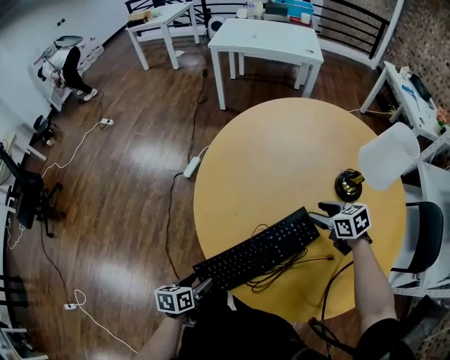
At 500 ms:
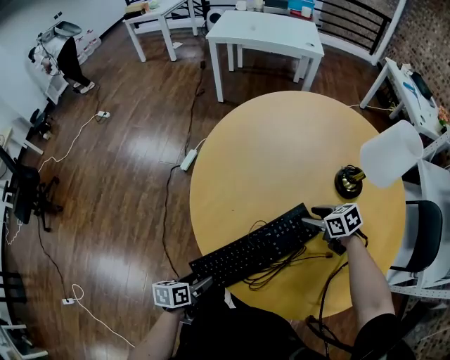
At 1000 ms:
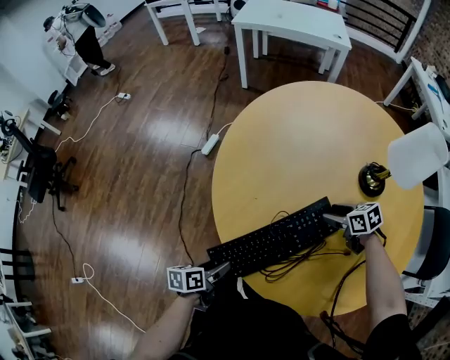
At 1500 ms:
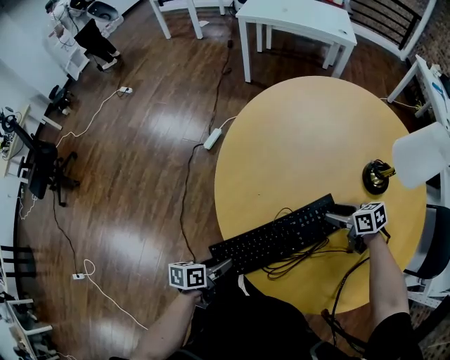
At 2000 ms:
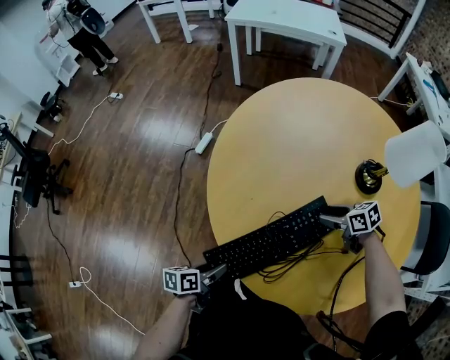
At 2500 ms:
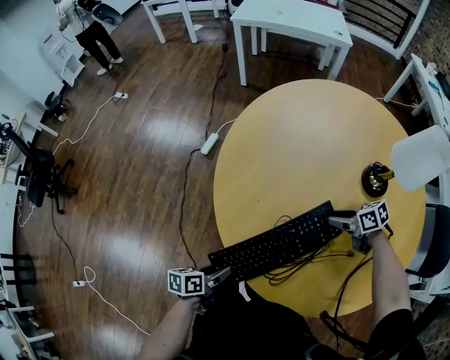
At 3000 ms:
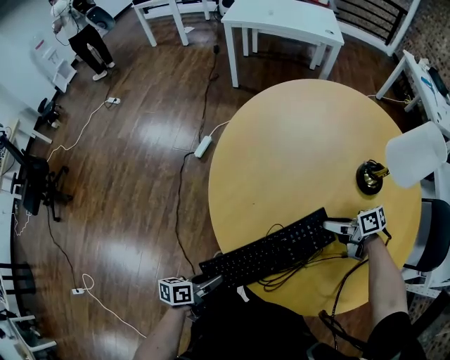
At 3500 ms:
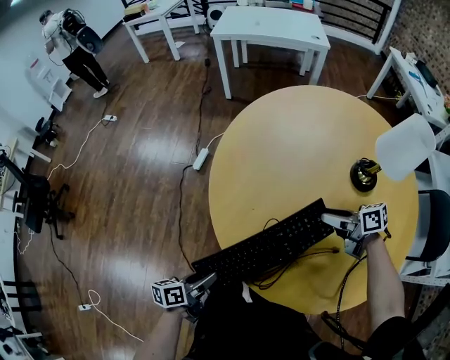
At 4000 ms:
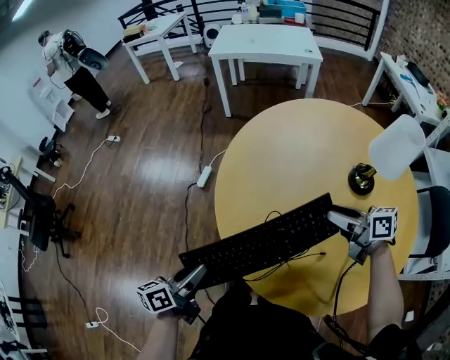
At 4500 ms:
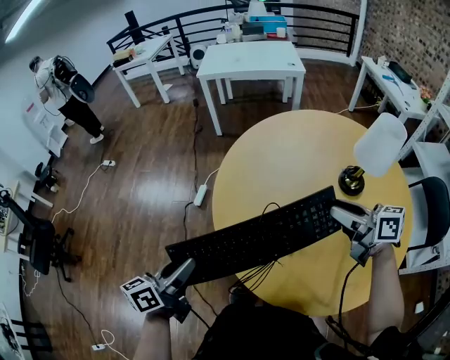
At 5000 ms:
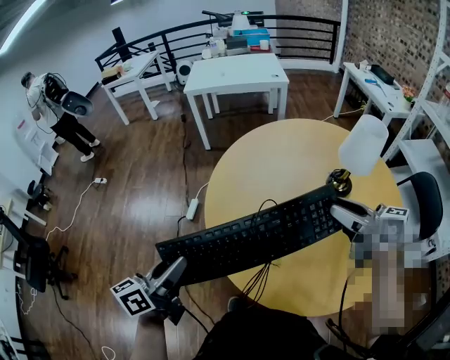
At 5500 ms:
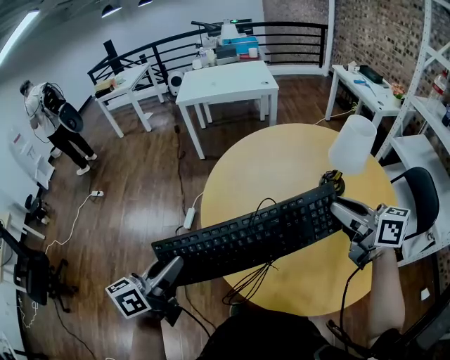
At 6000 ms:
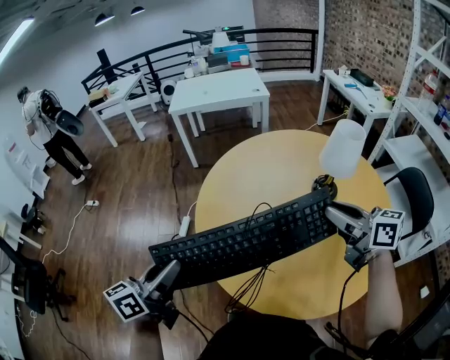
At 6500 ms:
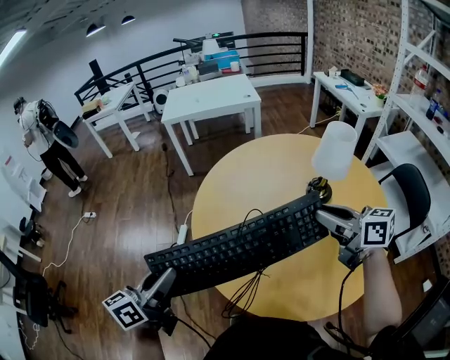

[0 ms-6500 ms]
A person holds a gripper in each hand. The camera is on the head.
0 ms to 2000 ms: The right gripper moves downward, about 5 cm.
2000 ms to 4500 ms: The two grippers go approximately 30 cm upward. The right gripper tilts its fingers roughly 30 degrees upward; the left gripper changes its angle by roughly 30 degrees.
4500 ms to 6500 ms: The left gripper shifts roughly 10 cm upward. Meanwhile the right gripper moves upward and backward, about 10 cm.

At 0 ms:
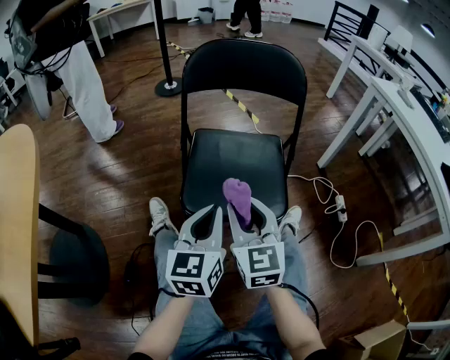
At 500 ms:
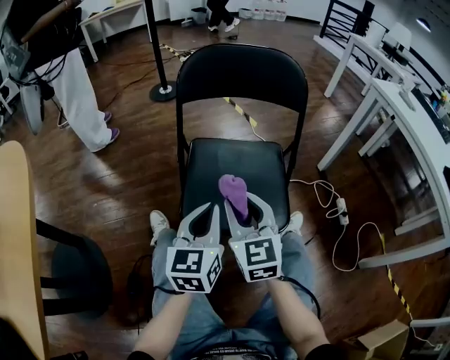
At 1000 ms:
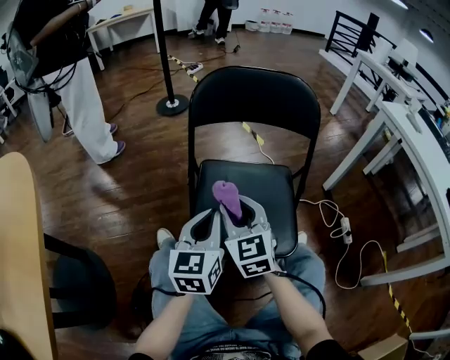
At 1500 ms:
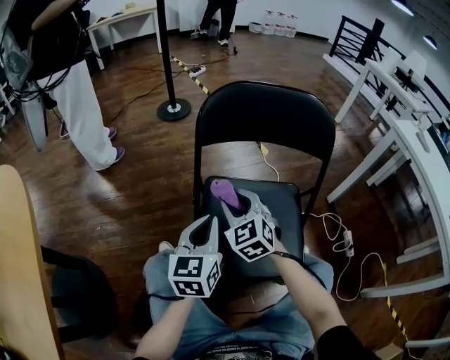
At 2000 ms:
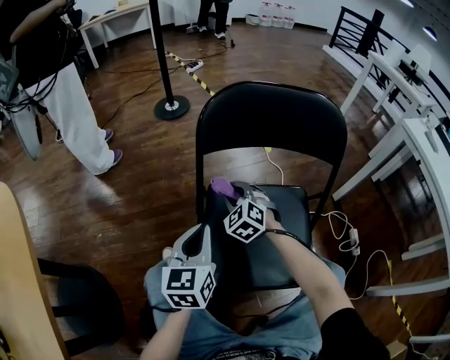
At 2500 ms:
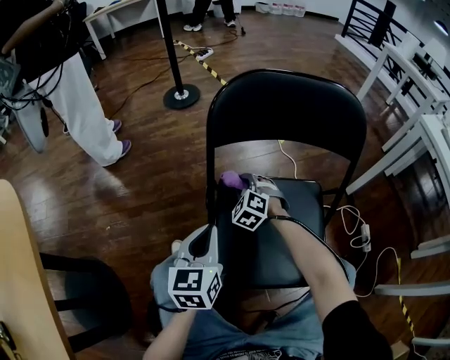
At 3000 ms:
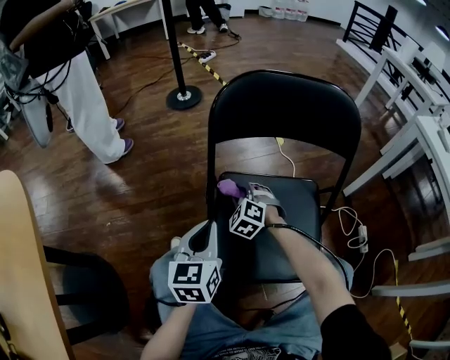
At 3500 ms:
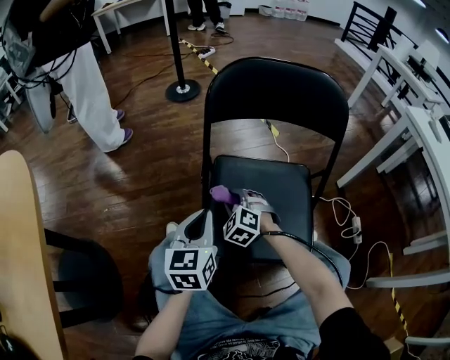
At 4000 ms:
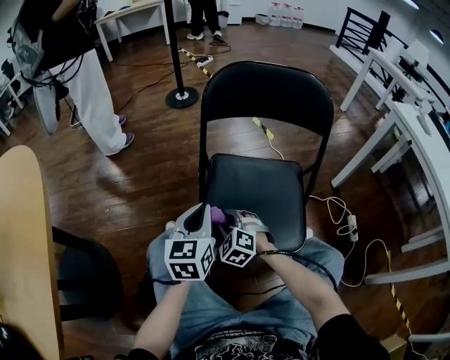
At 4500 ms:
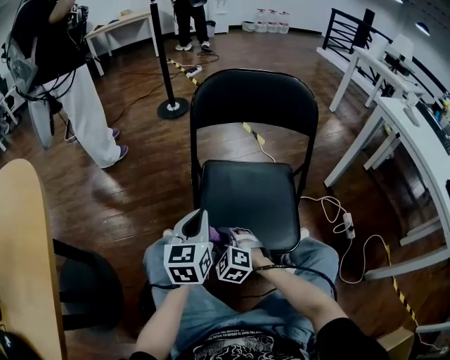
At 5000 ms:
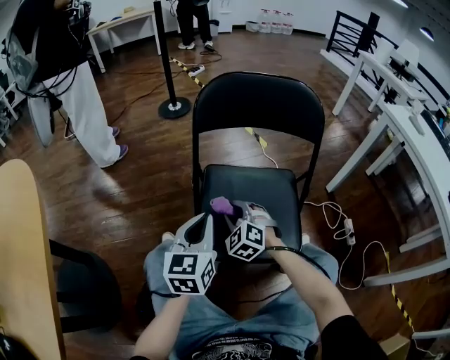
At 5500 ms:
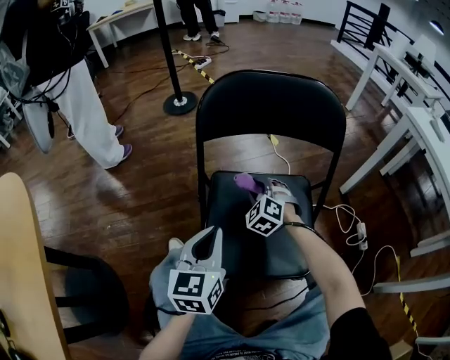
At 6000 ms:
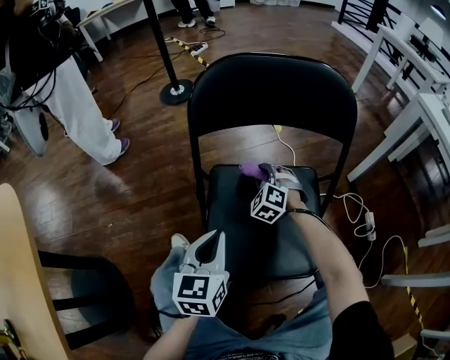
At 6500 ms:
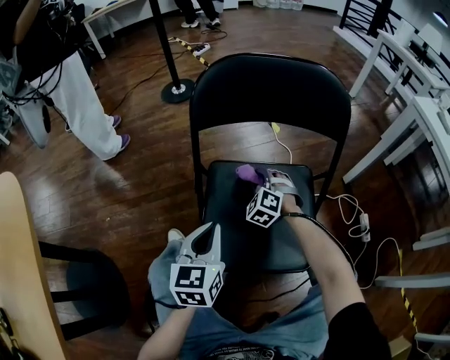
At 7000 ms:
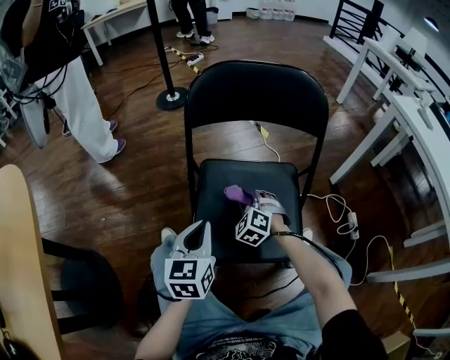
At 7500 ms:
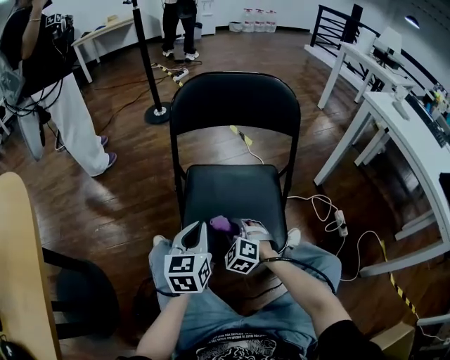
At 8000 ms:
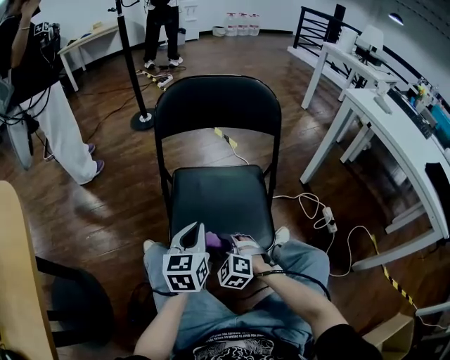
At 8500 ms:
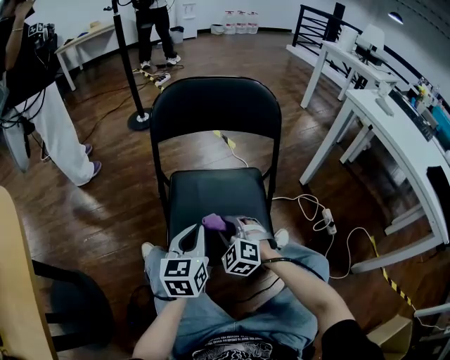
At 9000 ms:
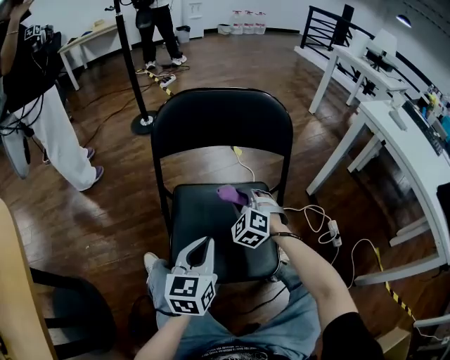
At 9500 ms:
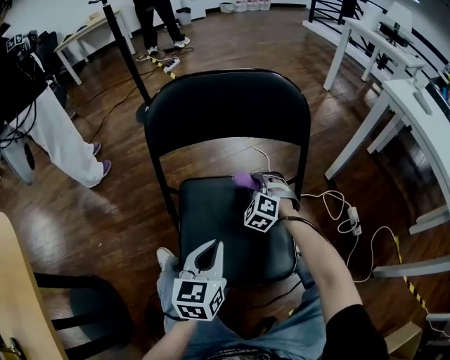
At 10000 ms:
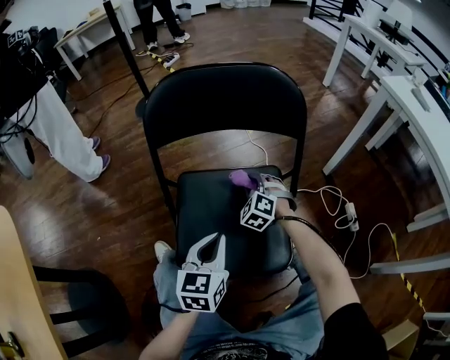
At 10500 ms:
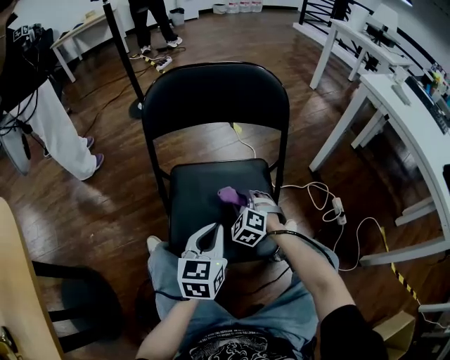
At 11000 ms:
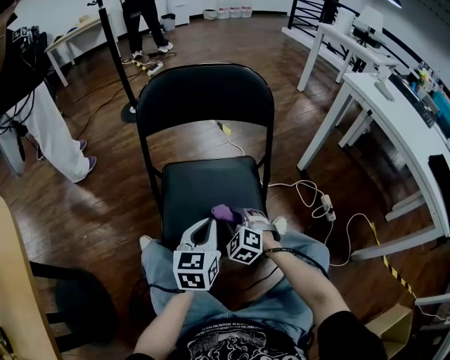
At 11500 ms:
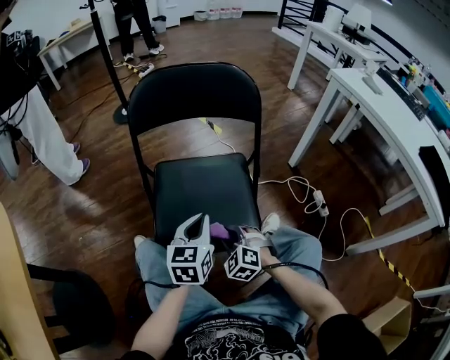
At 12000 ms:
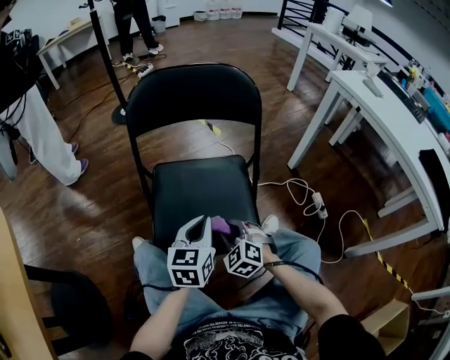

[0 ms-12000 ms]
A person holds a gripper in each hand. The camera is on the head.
0 ms to 2000 ms: The left gripper shifts roughly 25 cm forward and to the left. The right gripper heads forward, covering some 35 cm, and changes its angle by about 50 degrees.
2000 ms to 4000 ms: The left gripper is displaced backward by about 10 cm. The right gripper shifts approximately 20 cm backward.
4000 ms to 6000 ms: The right gripper goes approximately 25 cm forward and to the right; the left gripper moves roughly 5 cm.
6000 ms to 8000 ms: The right gripper moves backward, roughly 30 cm. Meanwhile the left gripper moves backward and to the right, about 10 cm.
8000 ms to 10000 ms: The left gripper travels forward by roughly 5 cm; the right gripper heads forward, covering about 25 cm.
10000 ms to 12000 ms: The left gripper shifts by roughly 5 cm. Meanwhile the right gripper travels backward by about 25 cm.

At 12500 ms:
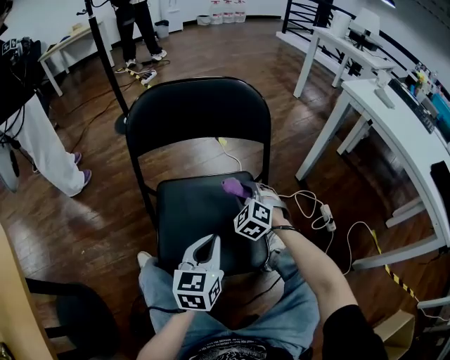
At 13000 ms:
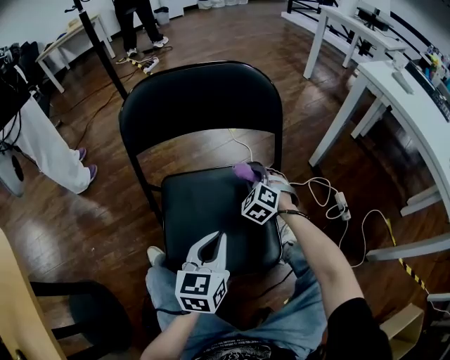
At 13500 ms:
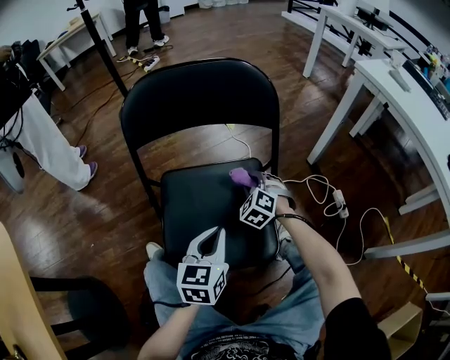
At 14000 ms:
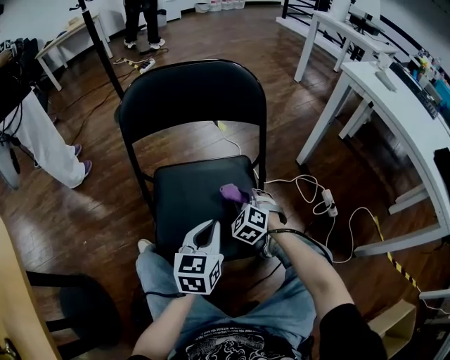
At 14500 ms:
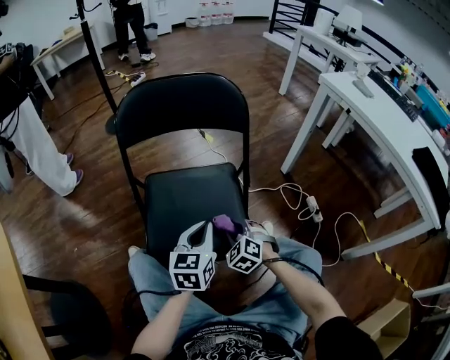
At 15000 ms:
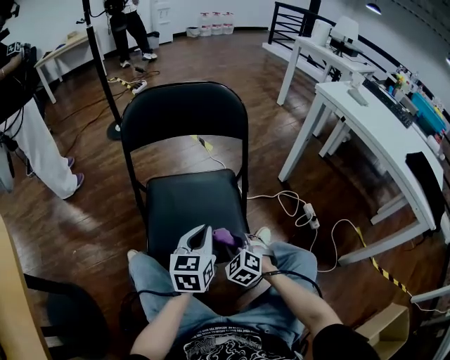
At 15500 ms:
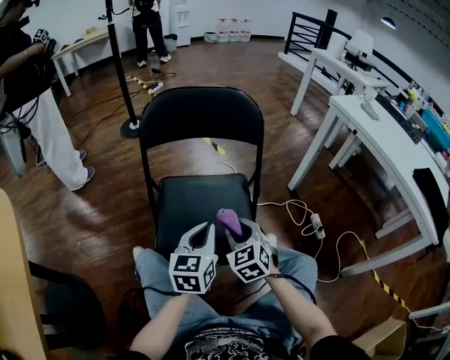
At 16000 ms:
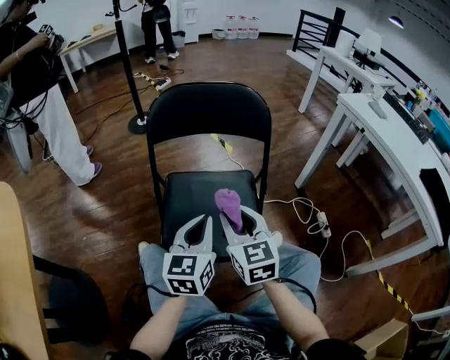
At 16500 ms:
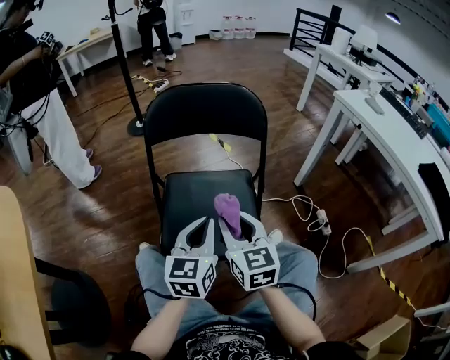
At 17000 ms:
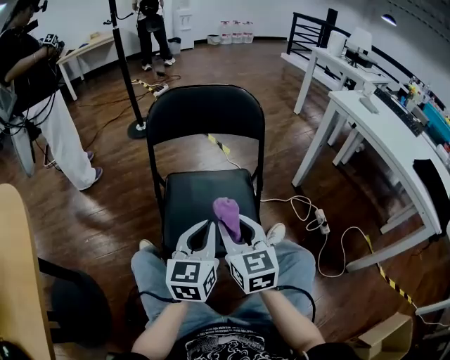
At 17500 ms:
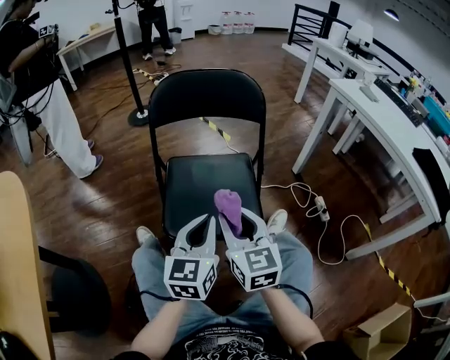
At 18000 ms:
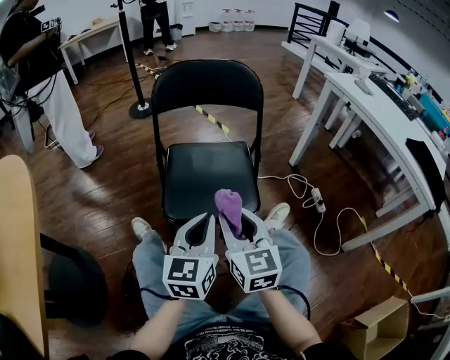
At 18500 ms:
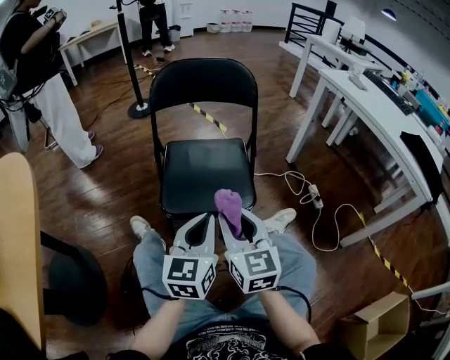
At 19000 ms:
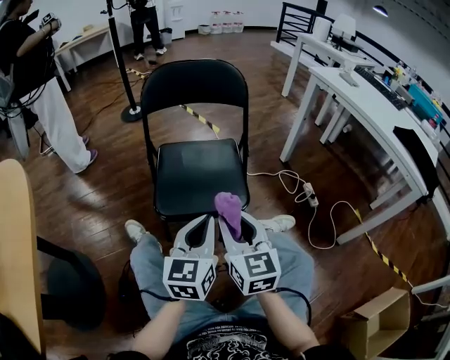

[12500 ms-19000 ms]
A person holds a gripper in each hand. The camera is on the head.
12500 ms to 14500 ms: The right gripper shifts some 15 cm backward.
14500 ms to 17000 ms: The right gripper moves upward, some 25 cm, and points its fingers some 30 degrees further upward. The left gripper moves upward and backward, roughly 10 cm.
17000 ms to 19000 ms: The two grippers go roughly 15 cm backward.

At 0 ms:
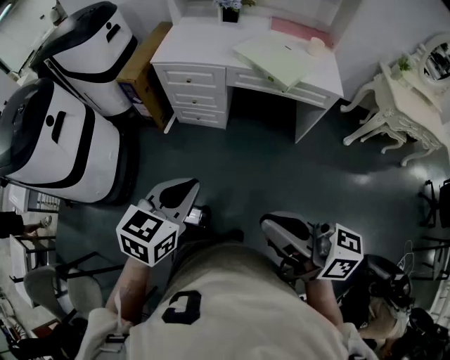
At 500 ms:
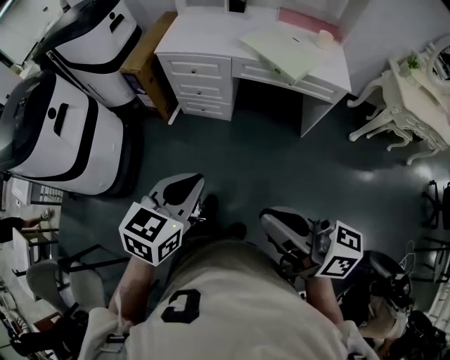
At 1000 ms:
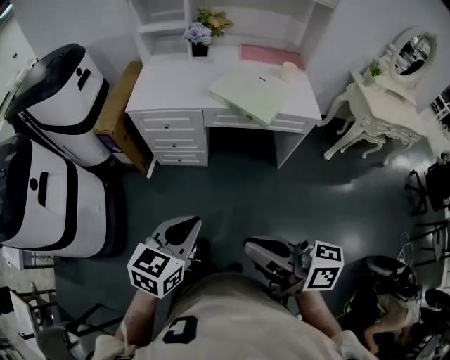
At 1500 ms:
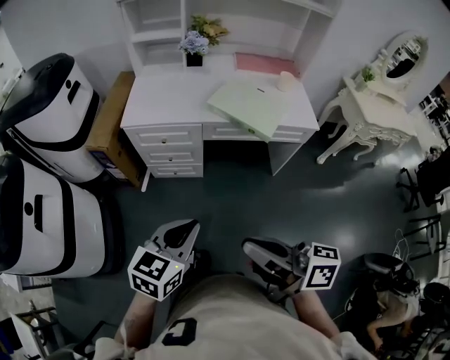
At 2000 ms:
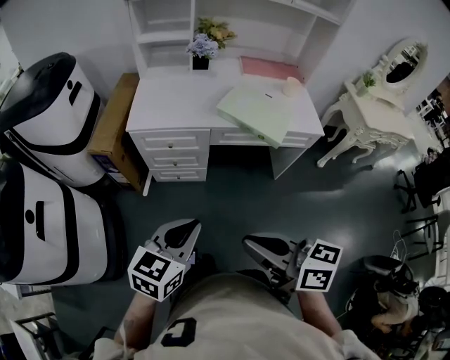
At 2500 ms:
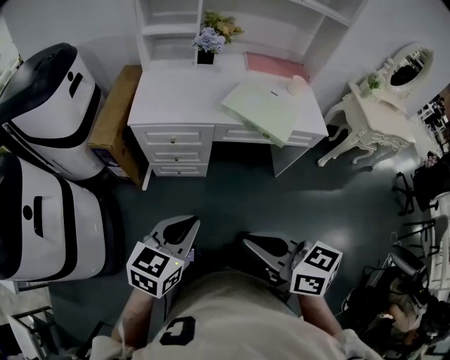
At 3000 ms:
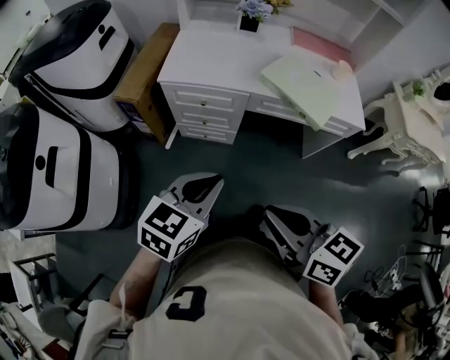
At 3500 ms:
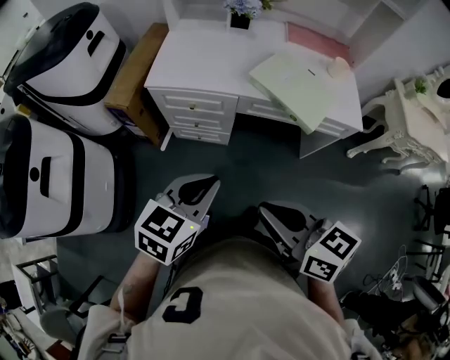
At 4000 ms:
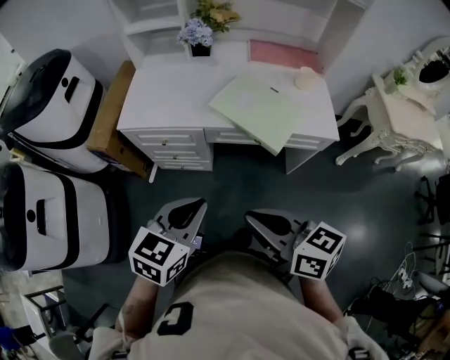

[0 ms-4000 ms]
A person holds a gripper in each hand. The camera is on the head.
0 ms to 2000 ms: The left gripper travels forward by about 20 cm. The right gripper moves forward and to the left, some 20 cm, and swivels some 20 degrees.
2000 ms to 4000 ms: The right gripper travels forward and to the right by roughly 15 cm, while the left gripper travels to the right and forward by approximately 15 cm.
